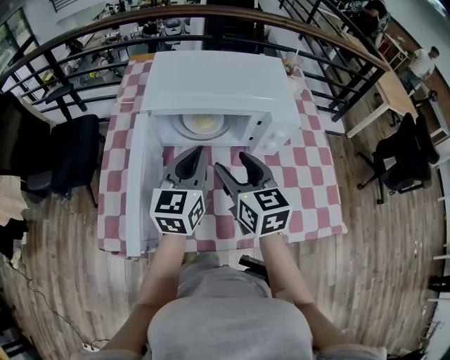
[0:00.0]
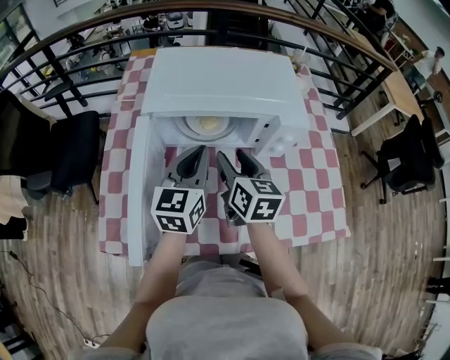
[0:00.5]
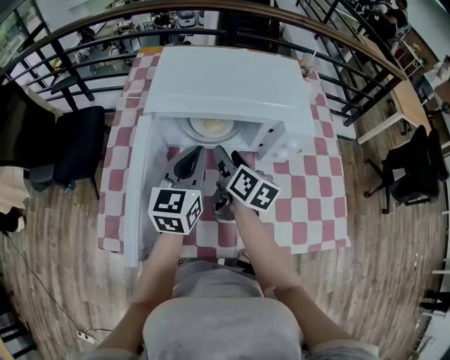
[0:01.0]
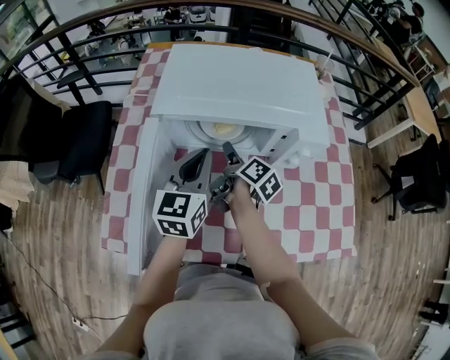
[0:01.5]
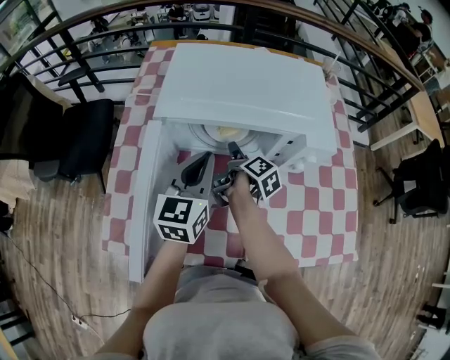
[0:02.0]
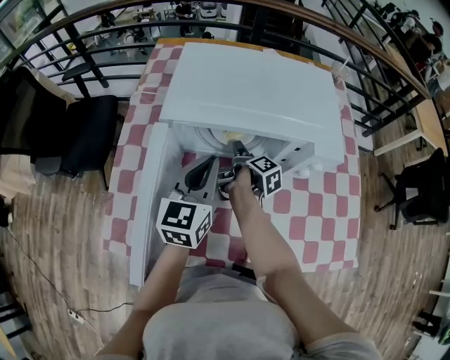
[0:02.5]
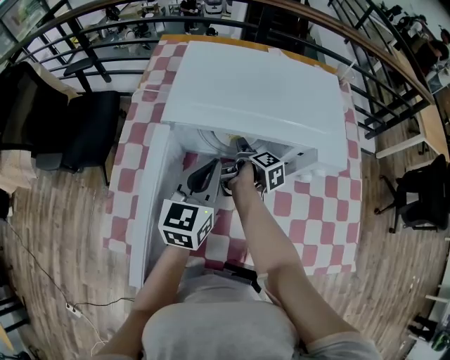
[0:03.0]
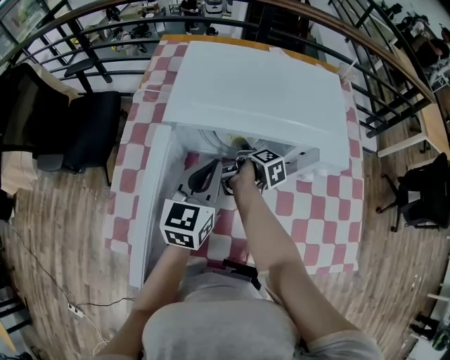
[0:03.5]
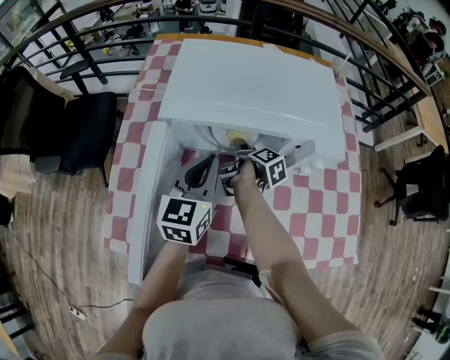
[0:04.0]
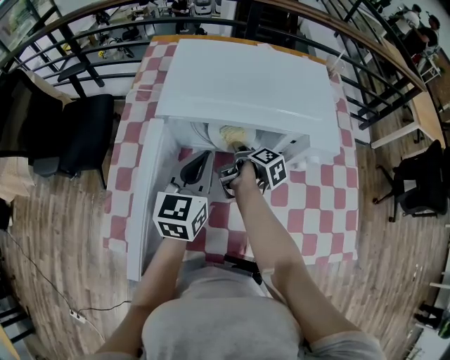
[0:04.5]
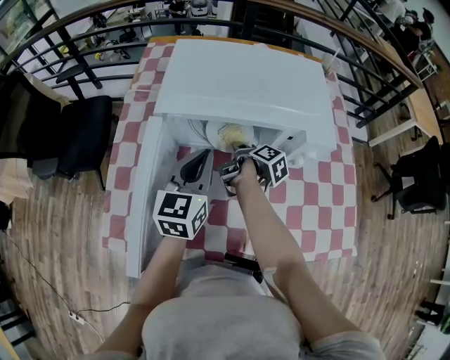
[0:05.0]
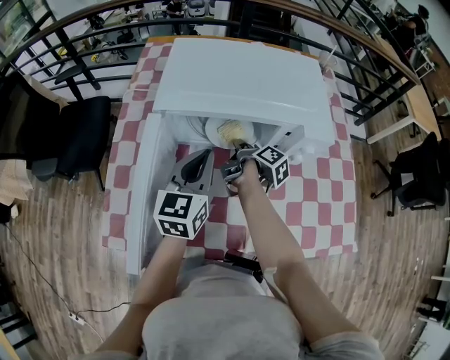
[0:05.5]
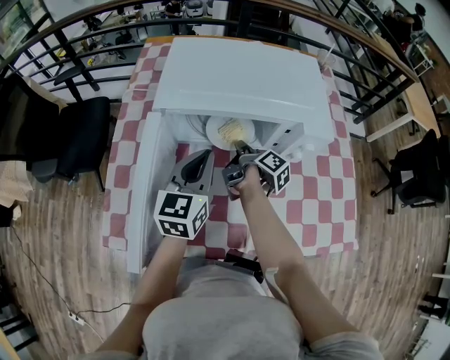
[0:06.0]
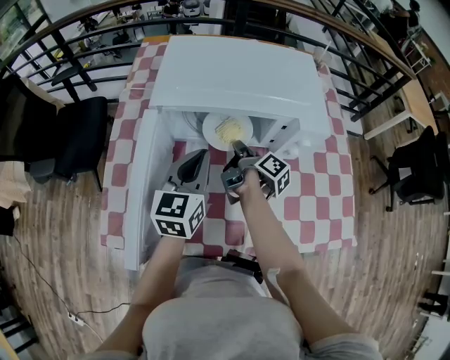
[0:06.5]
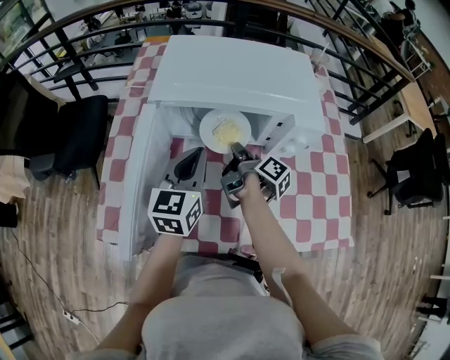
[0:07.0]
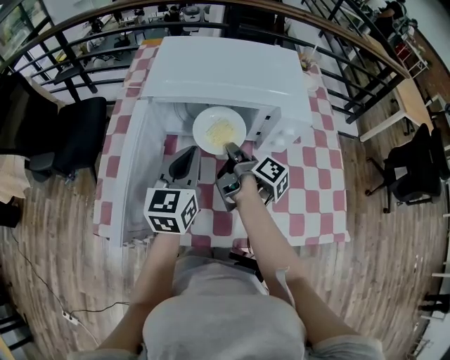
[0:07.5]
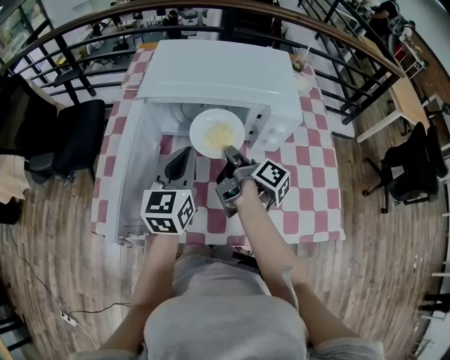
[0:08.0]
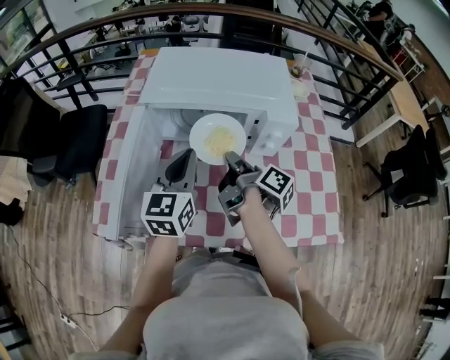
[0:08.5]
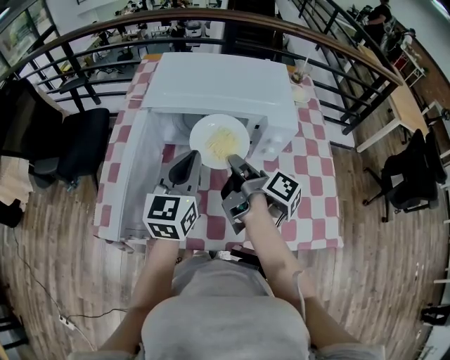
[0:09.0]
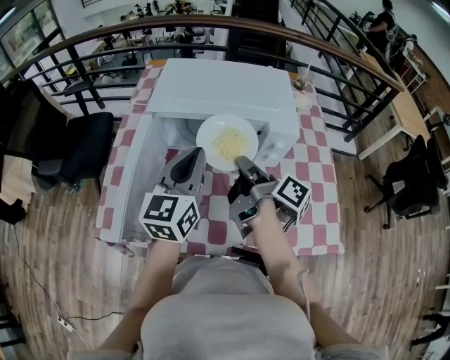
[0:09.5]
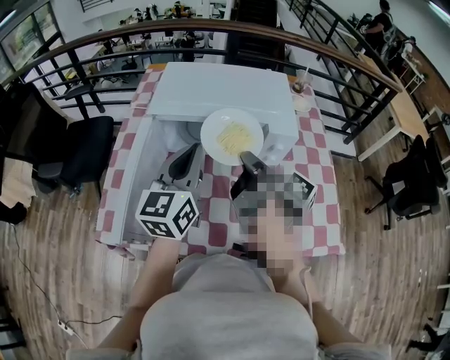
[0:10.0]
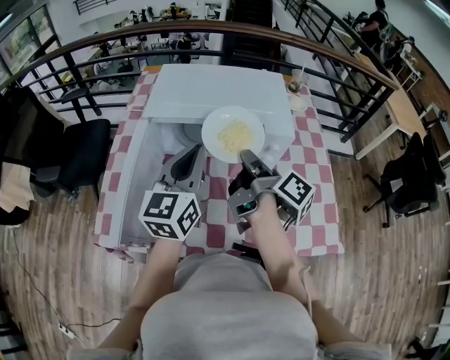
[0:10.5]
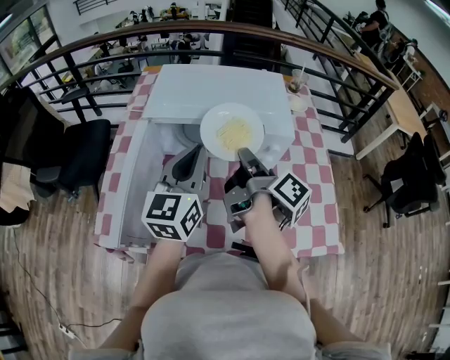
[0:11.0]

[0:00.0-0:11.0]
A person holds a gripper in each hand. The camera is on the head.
0:00.0 to 0:02.0: The left gripper moves forward, roughly 5 cm. Meanwhile the right gripper travels downward and forward by about 25 cm, and rotates around the line of its fingers by some 70 degrees, clockwise from behind.
0:02.0 to 0:03.5: The right gripper ends up roughly 5 cm from where it was.
0:03.5 to 0:05.5: The right gripper shifts by approximately 5 cm, and closes.
0:05.5 to 0:07.5: The right gripper heads backward and upward, covering approximately 10 cm.
0:07.5 to 0:09.0: The left gripper moves upward, some 5 cm. Meanwhile the right gripper shifts about 10 cm upward and backward.
0:09.0 to 0:11.0: The left gripper shifts by about 5 cm, while the right gripper heads upward, covering approximately 5 cm.

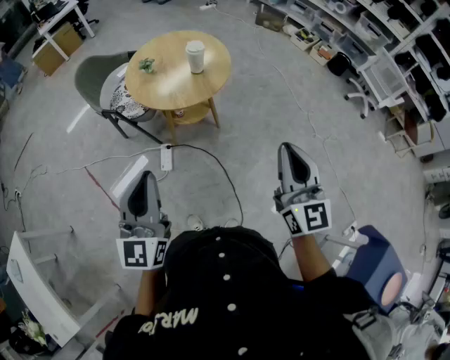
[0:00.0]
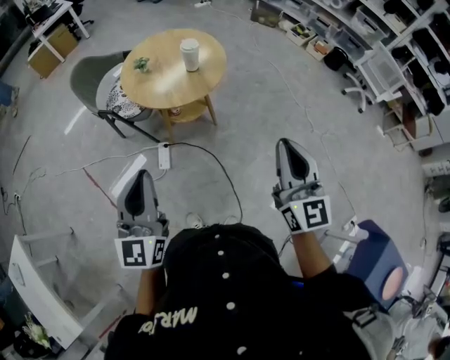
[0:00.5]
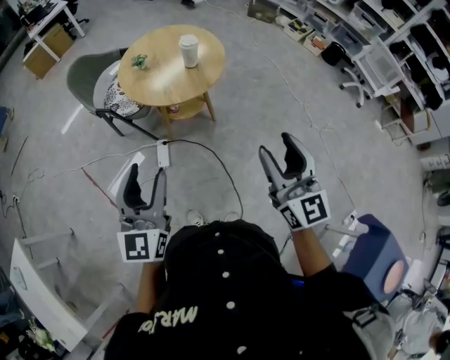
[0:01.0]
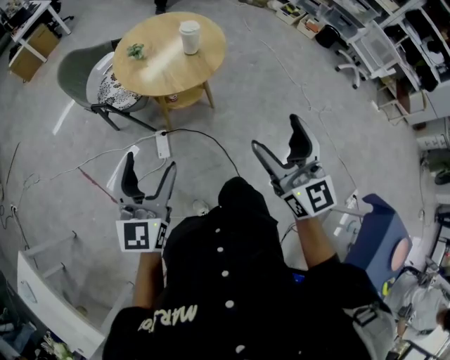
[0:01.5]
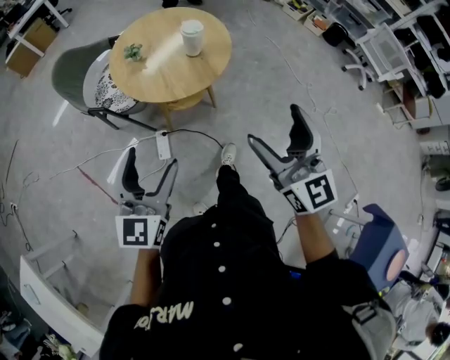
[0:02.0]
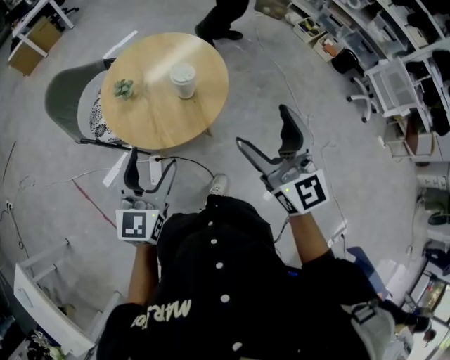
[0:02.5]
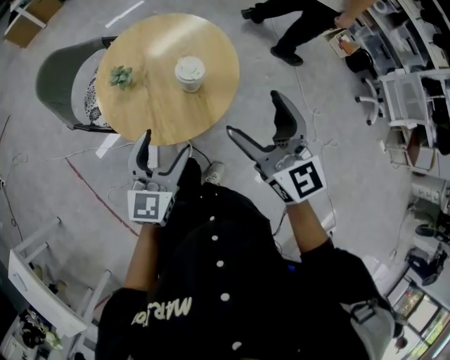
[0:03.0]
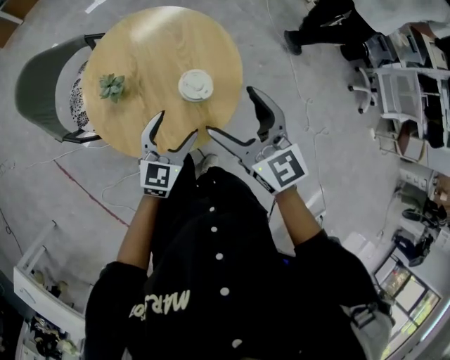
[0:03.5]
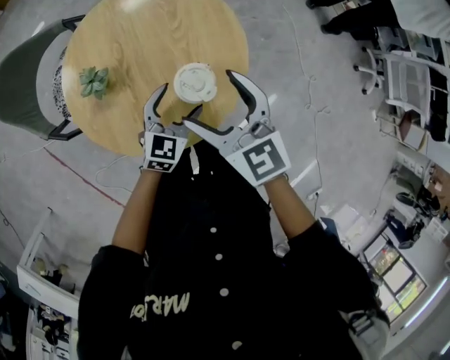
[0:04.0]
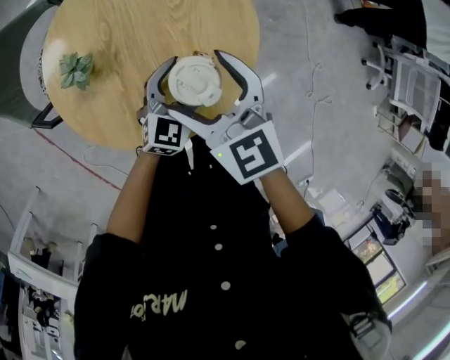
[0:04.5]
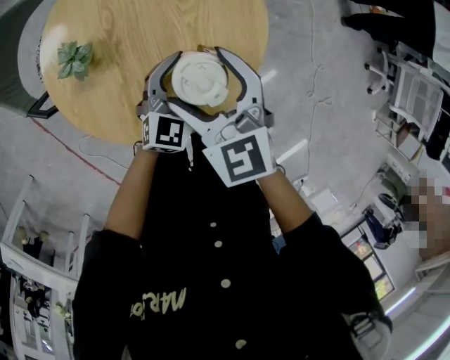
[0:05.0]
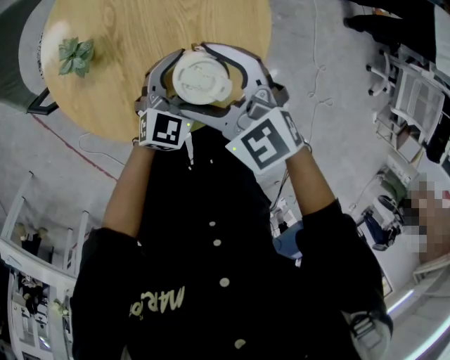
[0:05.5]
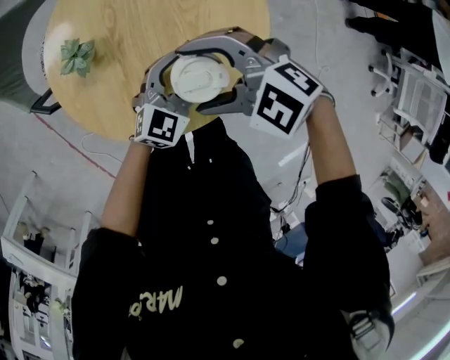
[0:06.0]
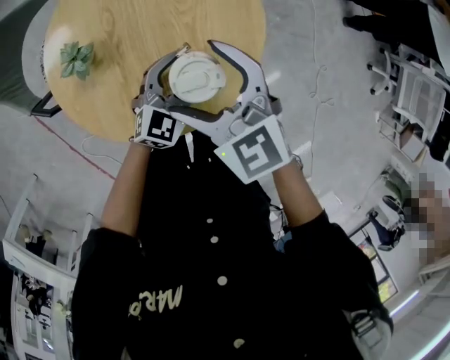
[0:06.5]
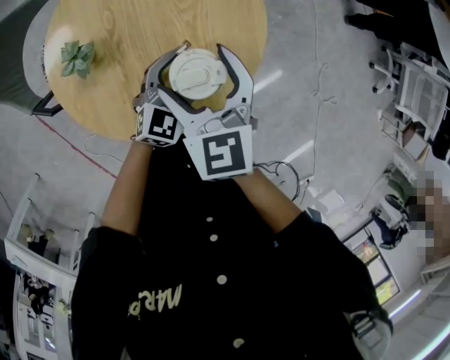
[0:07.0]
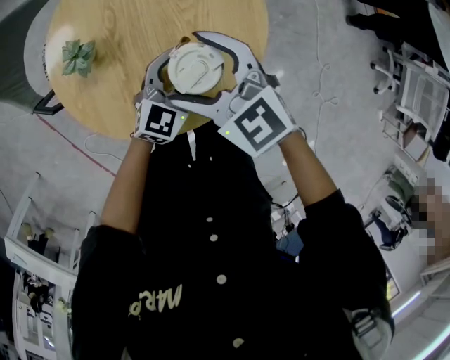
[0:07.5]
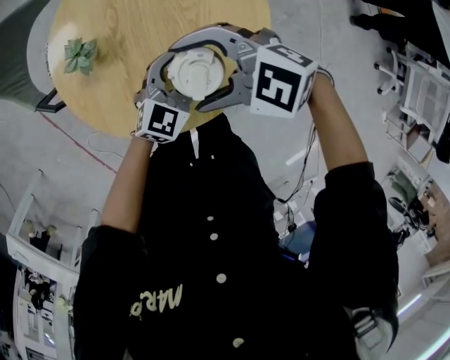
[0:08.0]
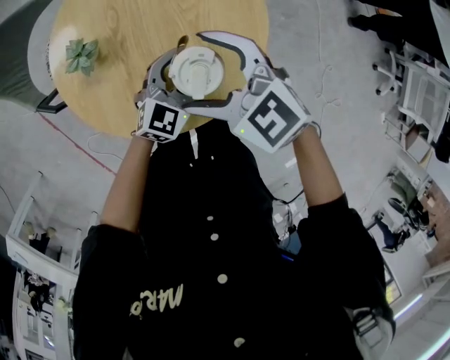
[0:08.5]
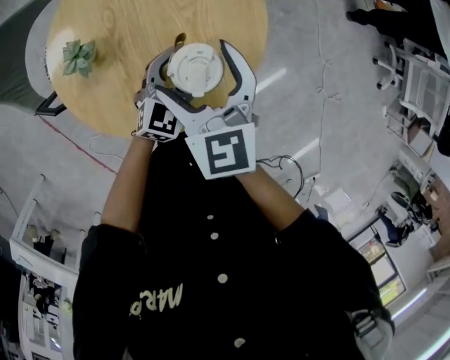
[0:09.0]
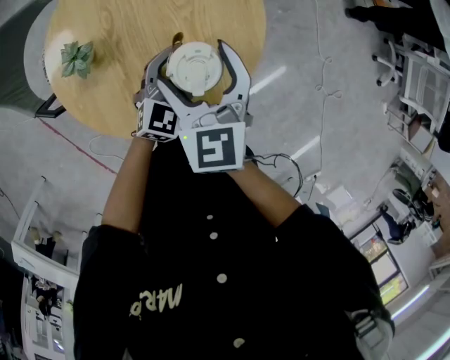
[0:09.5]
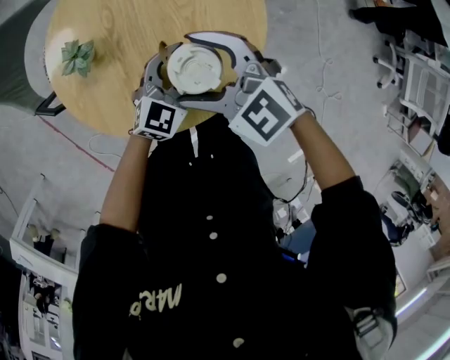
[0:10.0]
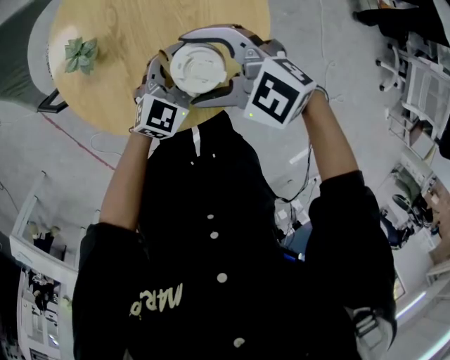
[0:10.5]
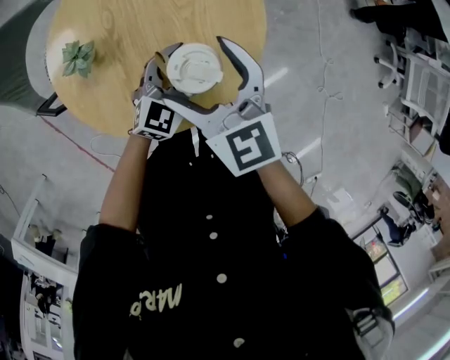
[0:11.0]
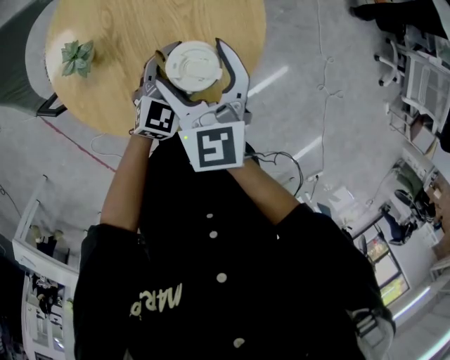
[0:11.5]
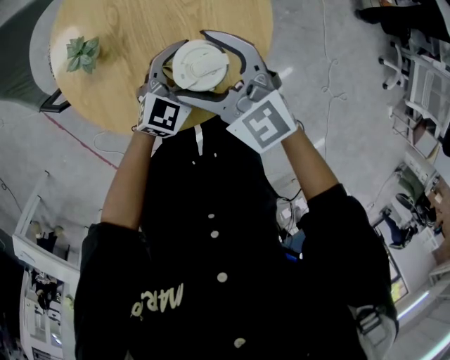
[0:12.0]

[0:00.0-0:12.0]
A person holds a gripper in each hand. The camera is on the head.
0:00.0 to 0:02.0: The right gripper travels forward and to the left by roughly 15 cm, and opens its fingers. Meanwhile the left gripper goes roughly 15 cm forward and downward, and opens up.
0:02.0 to 0:04.0: The two grippers travel together, forward, approximately 50 cm. The two grippers go approximately 25 cm downward. The right gripper tips its fingers downward by approximately 30 degrees, while the left gripper rotates approximately 20 degrees.
0:04.0 to 0:06.0: The left gripper goes roughly 5 cm downward; the right gripper is displaced downward by roughly 10 cm, and turns by about 70 degrees.
0:08.0 to 0:10.0: The right gripper changes its angle by about 30 degrees.

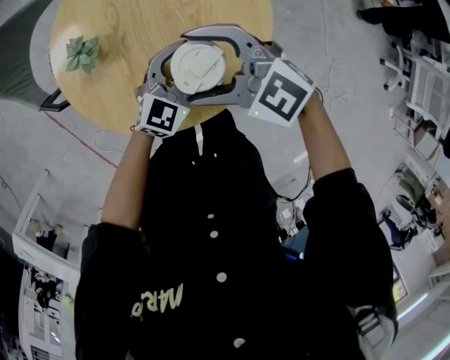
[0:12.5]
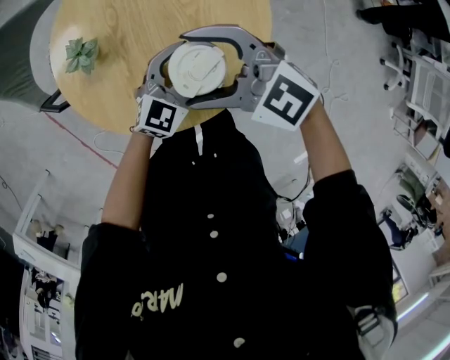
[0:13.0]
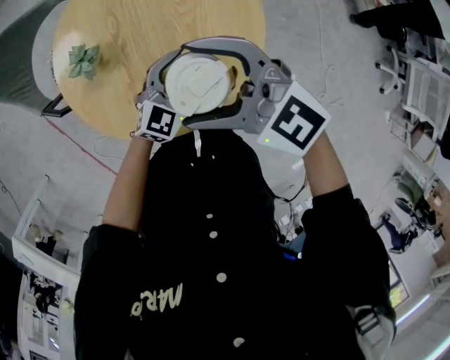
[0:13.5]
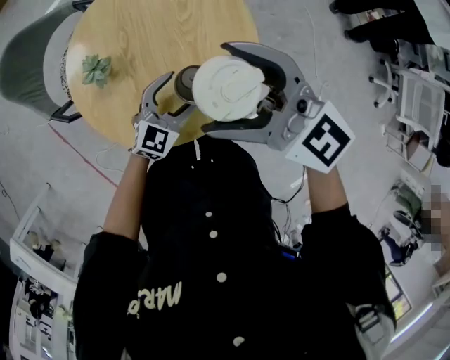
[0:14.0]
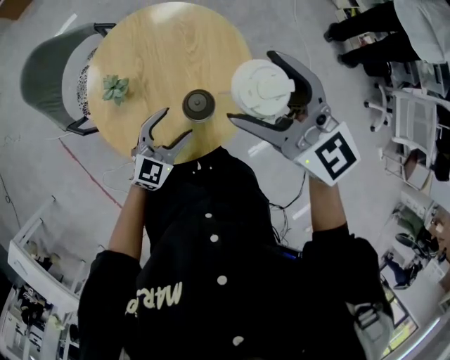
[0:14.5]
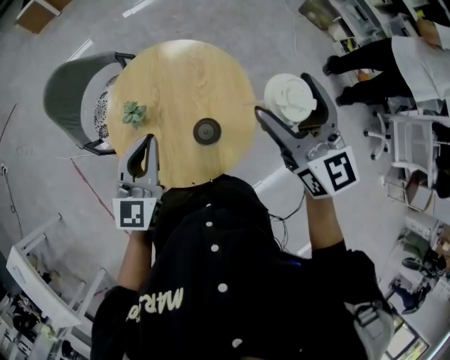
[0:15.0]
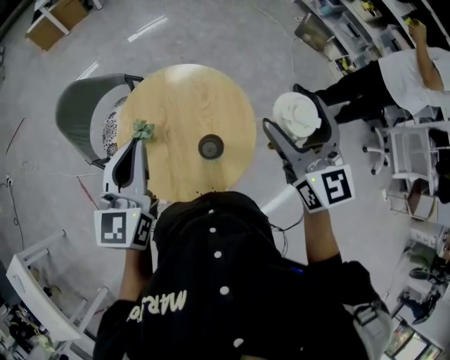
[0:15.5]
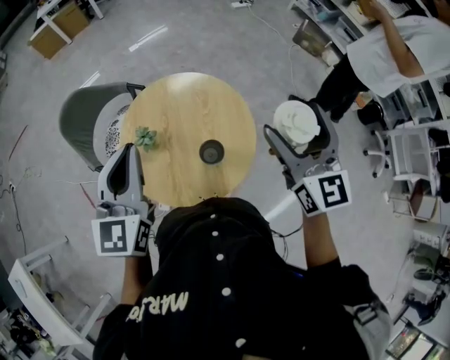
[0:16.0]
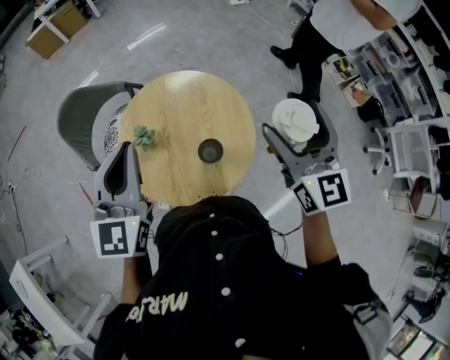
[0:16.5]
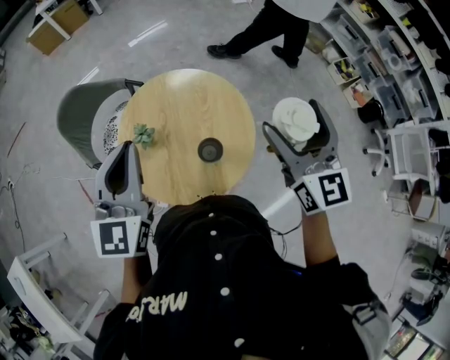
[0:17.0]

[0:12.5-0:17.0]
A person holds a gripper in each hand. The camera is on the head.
0:12.5 to 0:14.5: The right gripper heads upward, covering some 20 cm, and changes its angle by roughly 30 degrees. Meanwhile the left gripper travels upward by about 10 cm.
0:14.5 to 0:17.0: The left gripper is displaced upward by roughly 35 cm, rotates roughly 40 degrees, and closes up, while the right gripper travels upward and to the right by some 15 cm, and swivels approximately 30 degrees.
